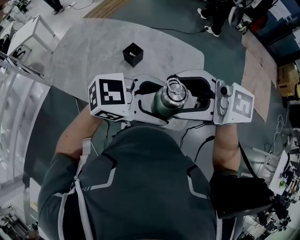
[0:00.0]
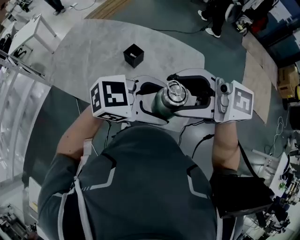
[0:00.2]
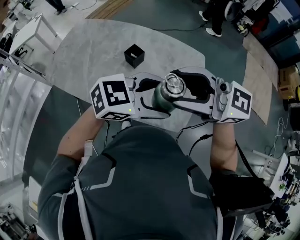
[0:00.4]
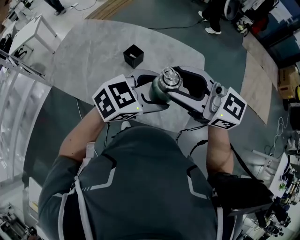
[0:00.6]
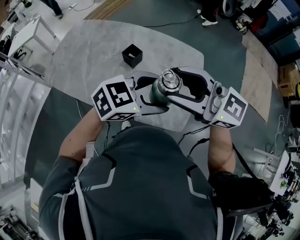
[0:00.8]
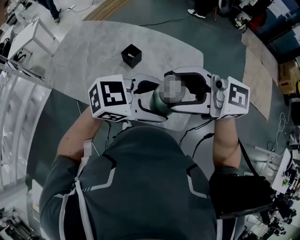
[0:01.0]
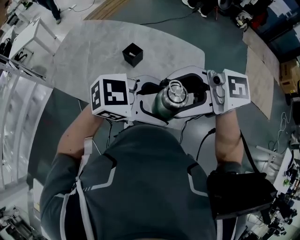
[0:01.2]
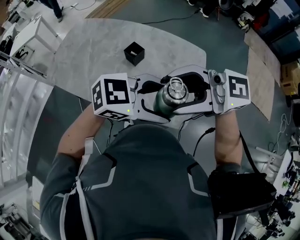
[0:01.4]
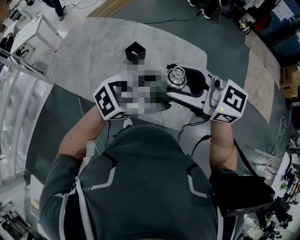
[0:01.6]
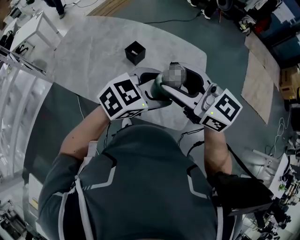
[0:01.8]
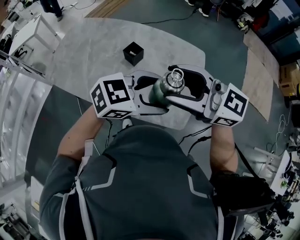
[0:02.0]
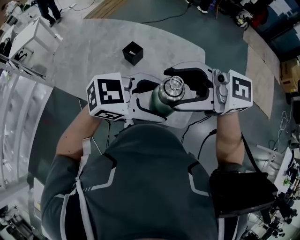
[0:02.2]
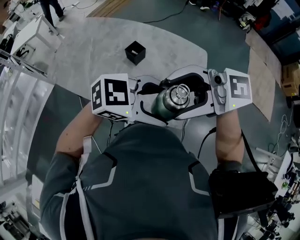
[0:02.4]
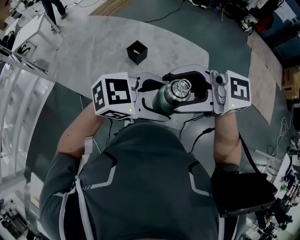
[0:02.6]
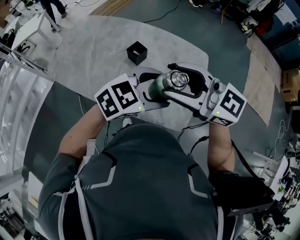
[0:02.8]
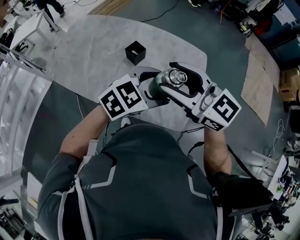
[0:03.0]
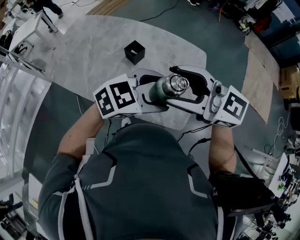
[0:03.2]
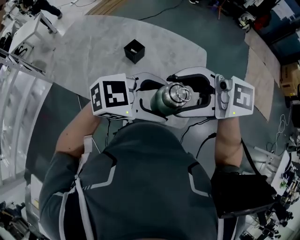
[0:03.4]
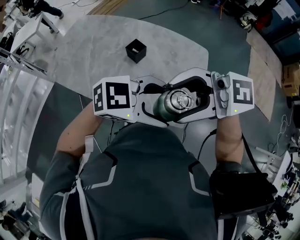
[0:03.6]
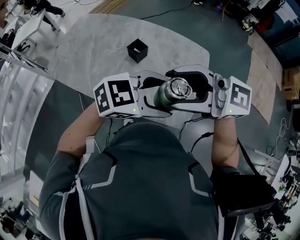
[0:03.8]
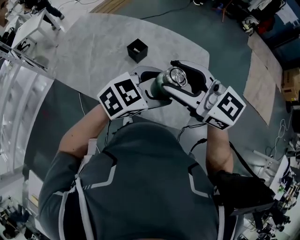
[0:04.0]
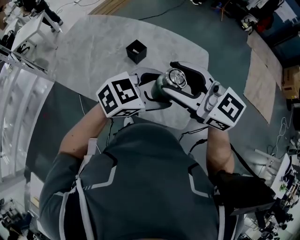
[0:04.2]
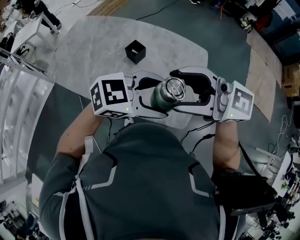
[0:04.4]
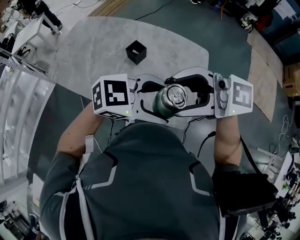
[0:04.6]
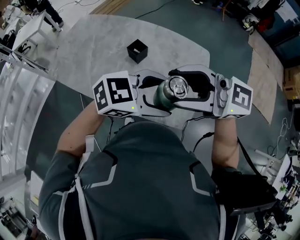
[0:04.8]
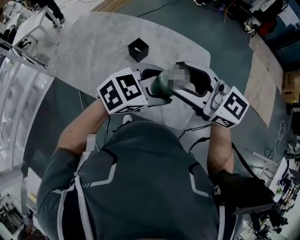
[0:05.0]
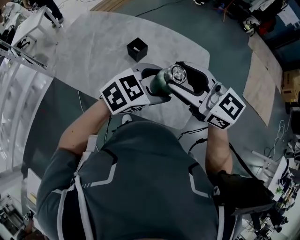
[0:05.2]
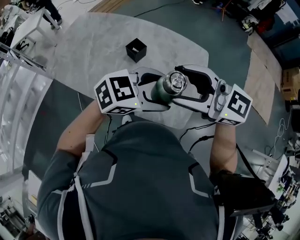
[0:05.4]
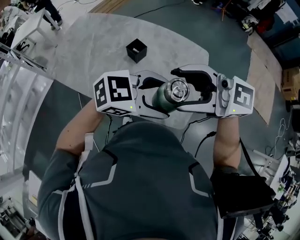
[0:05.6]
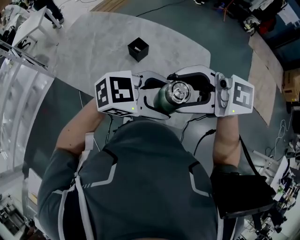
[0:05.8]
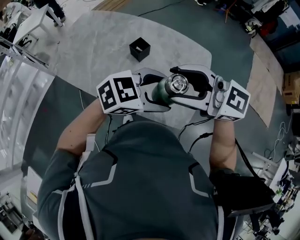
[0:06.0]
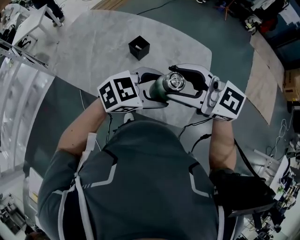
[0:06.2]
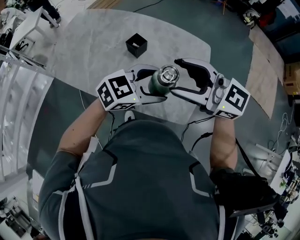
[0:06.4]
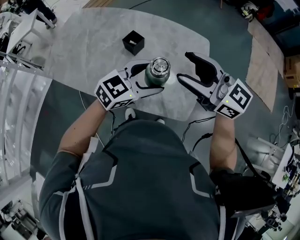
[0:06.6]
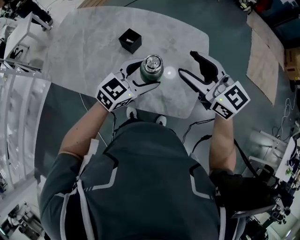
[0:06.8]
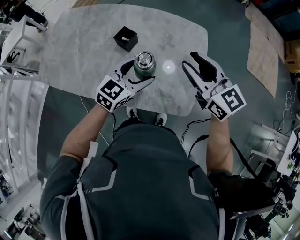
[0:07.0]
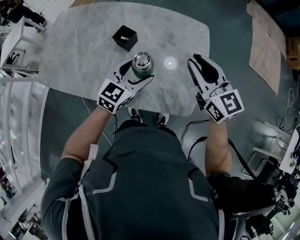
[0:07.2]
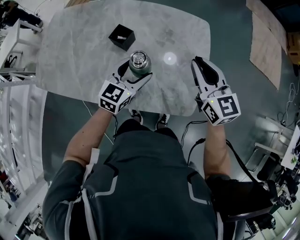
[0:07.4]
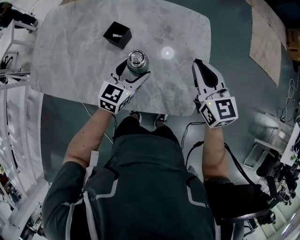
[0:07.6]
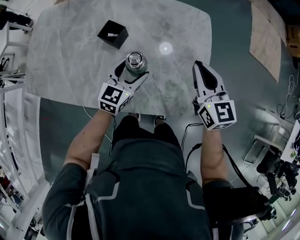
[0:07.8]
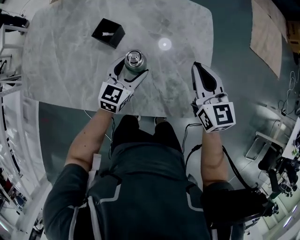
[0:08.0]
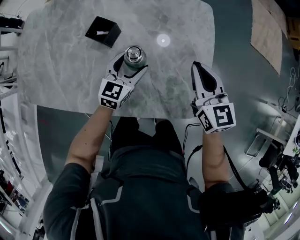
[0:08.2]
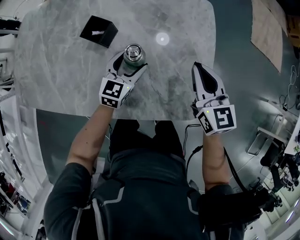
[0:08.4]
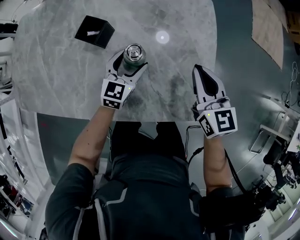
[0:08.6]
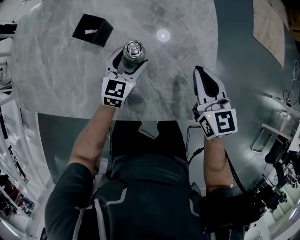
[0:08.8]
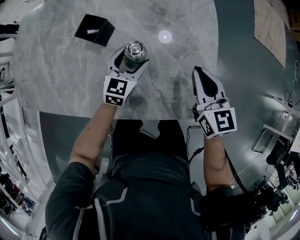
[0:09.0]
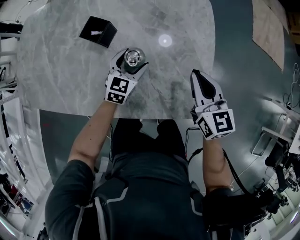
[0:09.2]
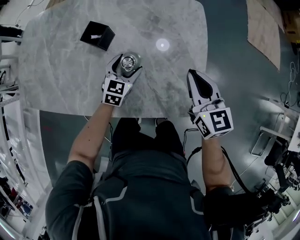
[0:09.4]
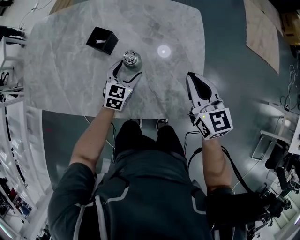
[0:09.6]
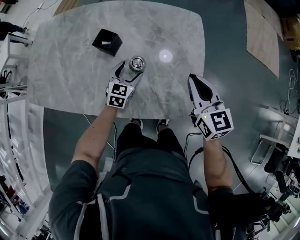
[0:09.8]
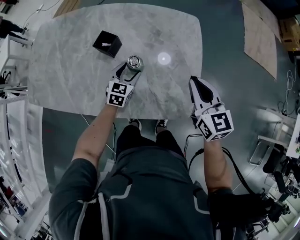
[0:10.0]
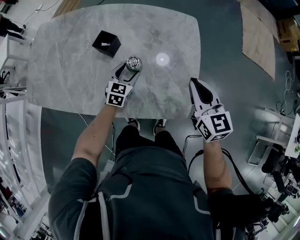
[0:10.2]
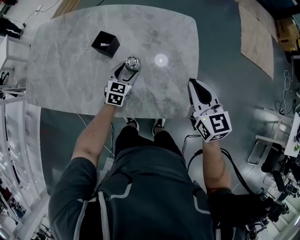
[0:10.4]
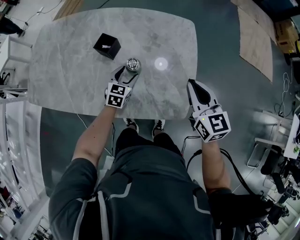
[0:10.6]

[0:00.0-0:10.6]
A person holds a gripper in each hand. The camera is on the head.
0:00.0 to 0:01.6: The left gripper moves about 5 cm, and changes its angle by some 20 degrees.
0:03.0 to 0:04.6: The right gripper moves roughly 10 cm, and rotates about 40 degrees, while the left gripper changes place by roughly 10 cm, and changes its angle by some 30 degrees.
0:06.0 to 0:07.6: Both grippers move downward, about 20 cm. The right gripper turns by some 70 degrees, and closes, while the left gripper swivels some 30 degrees.
0:07.6 to 0:09.0: Both grippers move downward, roughly 15 cm.
0:09.0 to 0:10.6: The right gripper shifts some 15 cm upward and backward. Meanwhile the left gripper ends up roughly 5 cm from where it was.

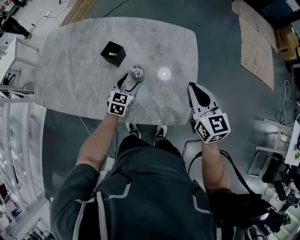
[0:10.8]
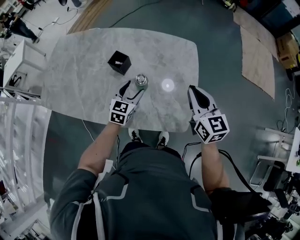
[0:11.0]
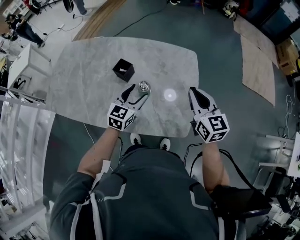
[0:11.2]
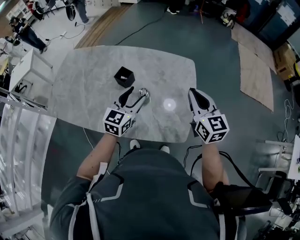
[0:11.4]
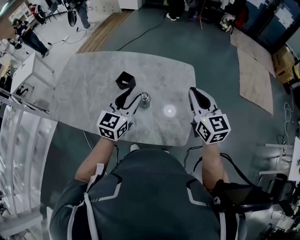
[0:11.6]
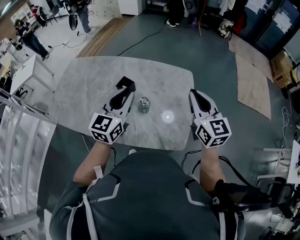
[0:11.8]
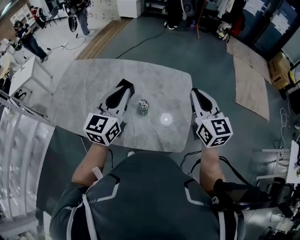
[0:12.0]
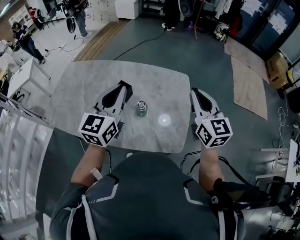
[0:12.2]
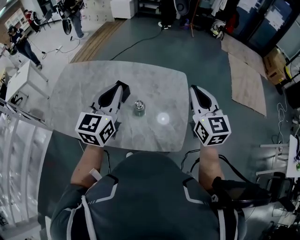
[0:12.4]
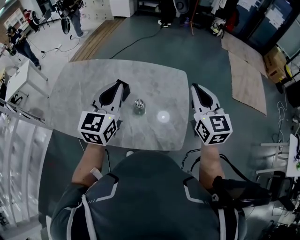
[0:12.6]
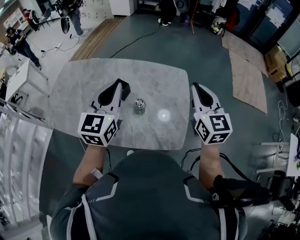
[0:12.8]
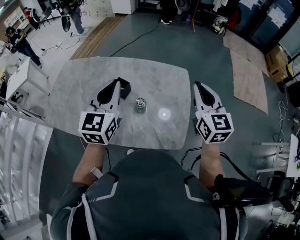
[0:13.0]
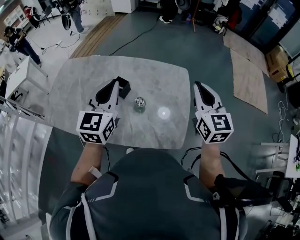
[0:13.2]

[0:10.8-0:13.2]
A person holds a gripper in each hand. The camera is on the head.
0:10.8 to 0:12.0: The right gripper moves upward, roughly 15 cm. The left gripper moves upward, some 35 cm, changes its angle by some 30 degrees, and closes up.
0:12.0 to 0:13.2: There are only small adjustments of the grippers.

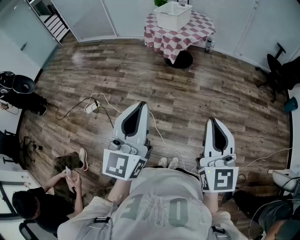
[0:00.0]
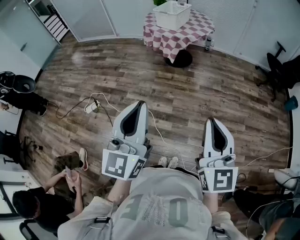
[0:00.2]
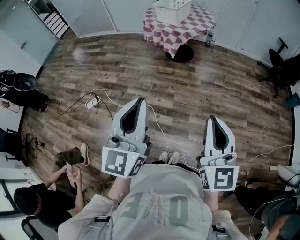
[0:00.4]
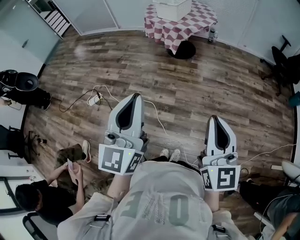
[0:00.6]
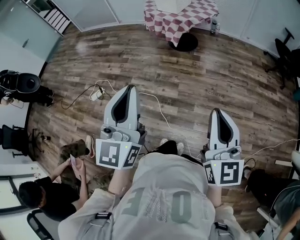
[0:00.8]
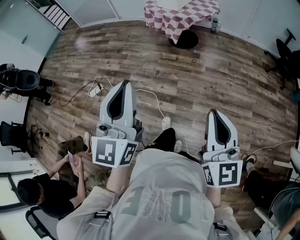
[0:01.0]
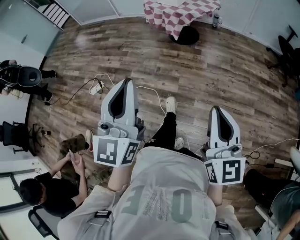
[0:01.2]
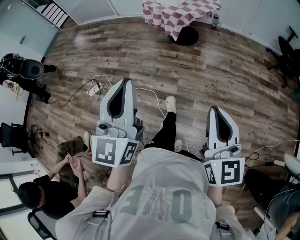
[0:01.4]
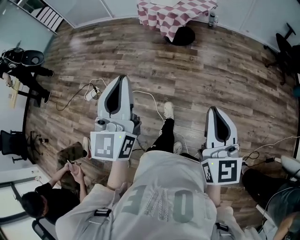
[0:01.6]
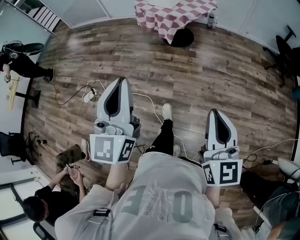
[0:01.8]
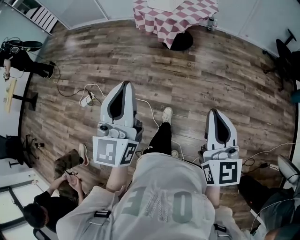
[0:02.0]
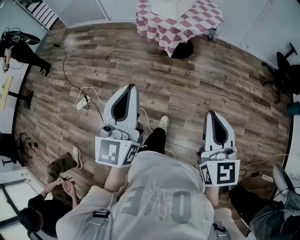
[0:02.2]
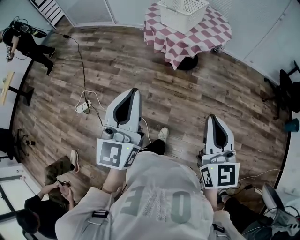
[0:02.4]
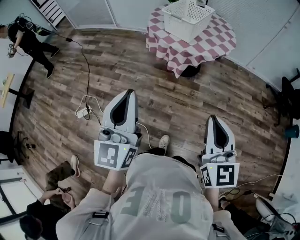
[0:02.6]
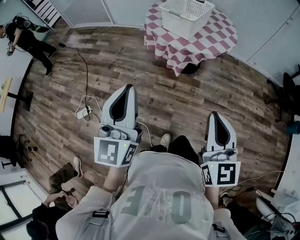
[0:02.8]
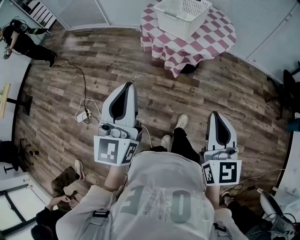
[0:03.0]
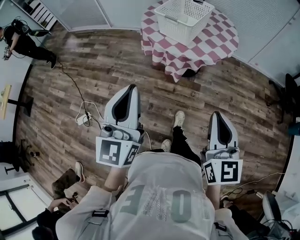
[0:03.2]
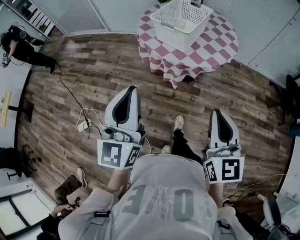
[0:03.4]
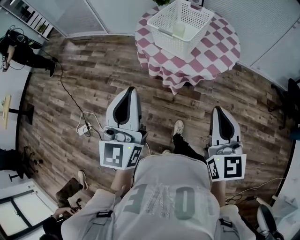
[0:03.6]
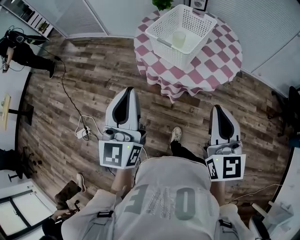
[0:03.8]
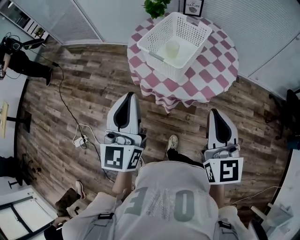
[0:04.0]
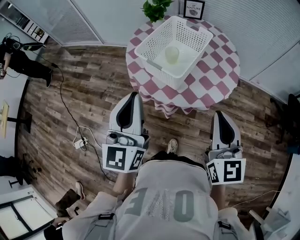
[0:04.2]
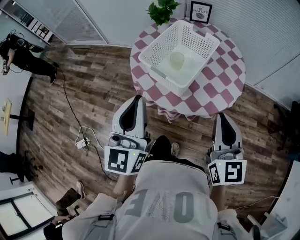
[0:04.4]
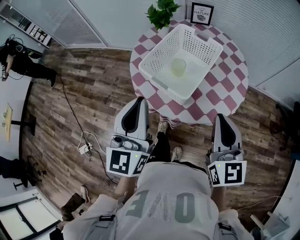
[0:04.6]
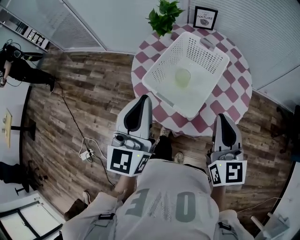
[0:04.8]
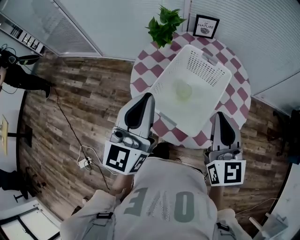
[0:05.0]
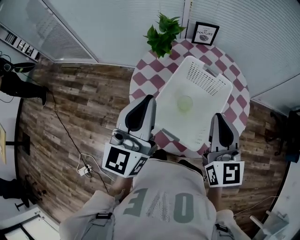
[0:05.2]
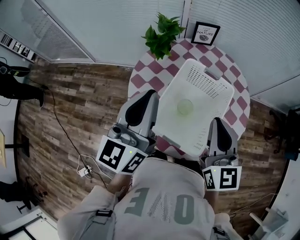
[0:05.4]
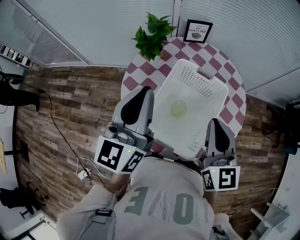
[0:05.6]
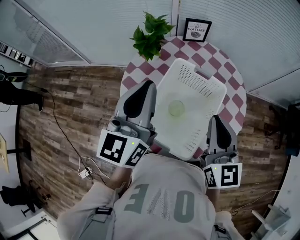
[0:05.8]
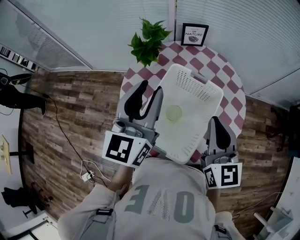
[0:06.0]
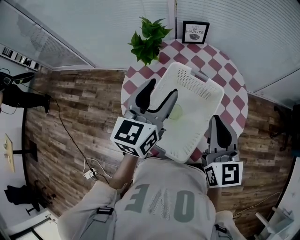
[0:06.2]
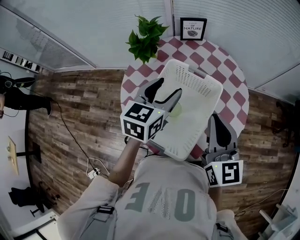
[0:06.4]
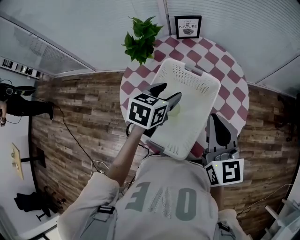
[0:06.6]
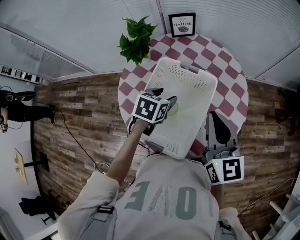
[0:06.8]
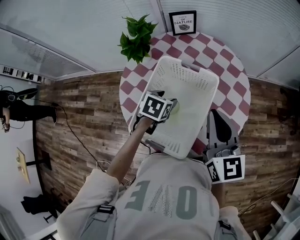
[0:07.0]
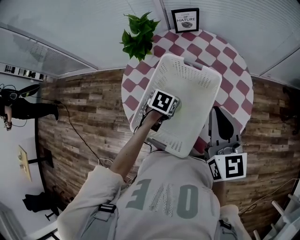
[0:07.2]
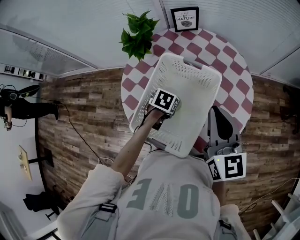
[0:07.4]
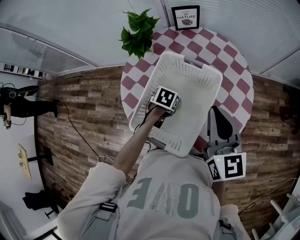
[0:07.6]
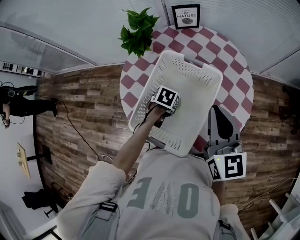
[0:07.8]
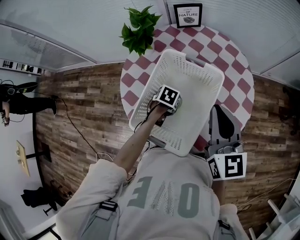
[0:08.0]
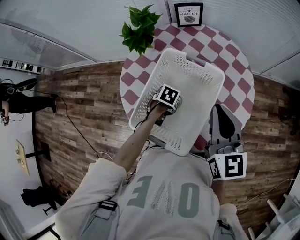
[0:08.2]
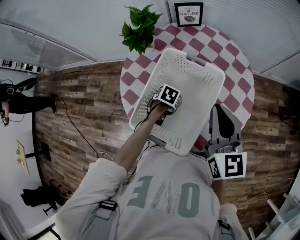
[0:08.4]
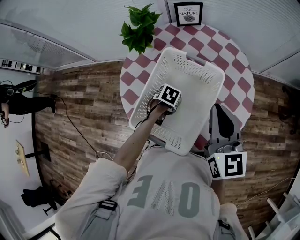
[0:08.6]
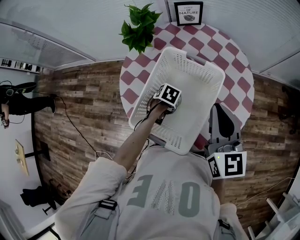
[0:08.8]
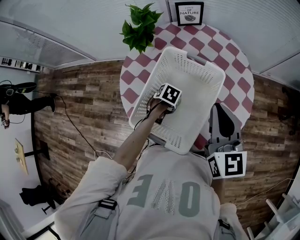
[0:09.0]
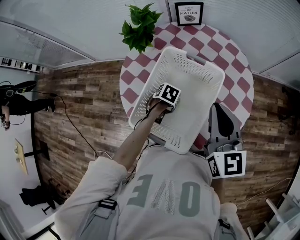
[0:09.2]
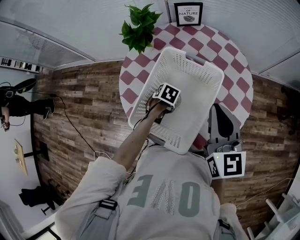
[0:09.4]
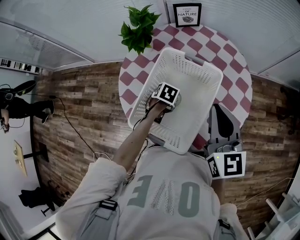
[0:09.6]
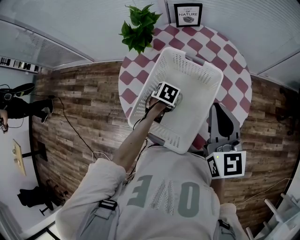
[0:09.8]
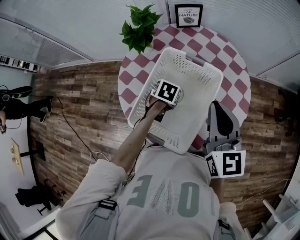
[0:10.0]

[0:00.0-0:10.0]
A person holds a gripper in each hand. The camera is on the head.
0:00.0 to 0:01.4: The right gripper goes roughly 5 cm downward. The left gripper ends up approximately 5 cm from where it was.
0:01.4 to 0:02.8: The two grippers travel together, forward, roughly 40 cm.
0:02.8 to 0:04.2: The two grippers go approximately 35 cm forward.
0:04.2 to 0:05.8: Both grippers travel together forward, some 35 cm.
0:05.8 to 0:07.2: The right gripper moves about 5 cm. The left gripper moves downward, some 35 cm, angles its fingers downward, by about 70 degrees, and opens.
0:07.2 to 0:08.6: The left gripper heads downward, covering approximately 5 cm, and closes.
0:08.6 to 0:10.0: The left gripper moves upward, about 5 cm, and closes.

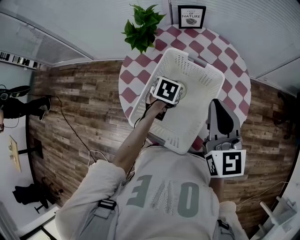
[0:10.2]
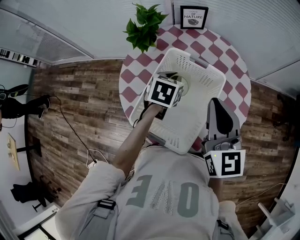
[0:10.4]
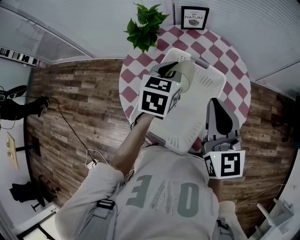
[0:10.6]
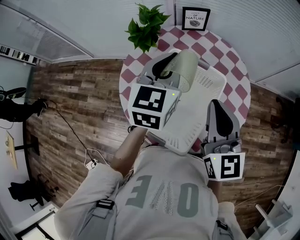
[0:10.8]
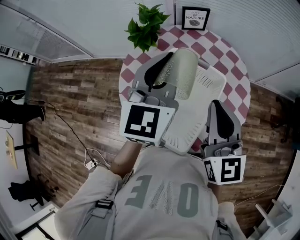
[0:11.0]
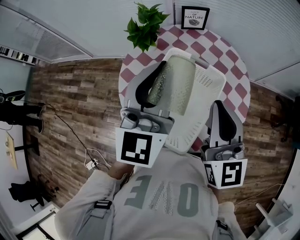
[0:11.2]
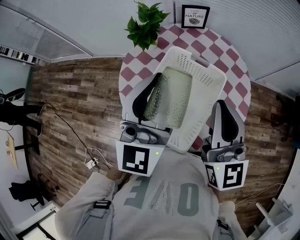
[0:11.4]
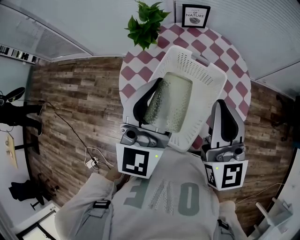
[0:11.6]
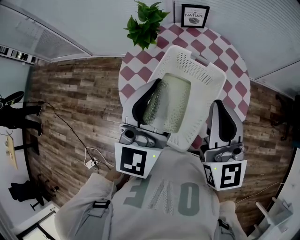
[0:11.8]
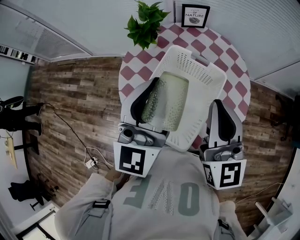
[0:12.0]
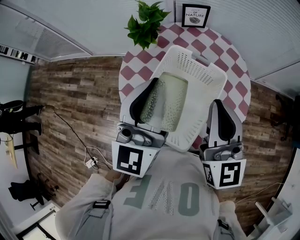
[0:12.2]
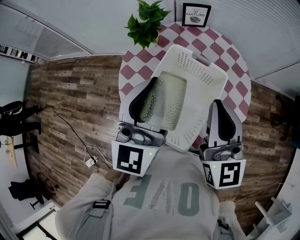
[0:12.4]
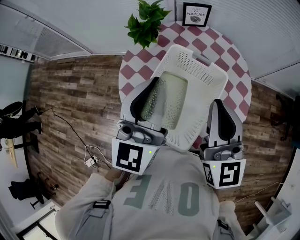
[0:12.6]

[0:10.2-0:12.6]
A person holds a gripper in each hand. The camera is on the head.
0:10.2 to 0:11.4: The right gripper heads upward, covering approximately 5 cm, while the left gripper moves upward, some 30 cm, and tips its fingers upward by some 70 degrees.
0:11.4 to 0:12.6: The grippers stay close to where they were, moving slightly.
